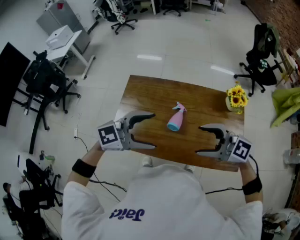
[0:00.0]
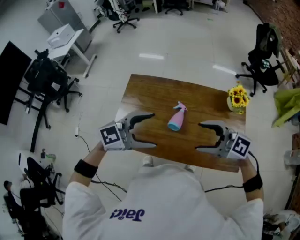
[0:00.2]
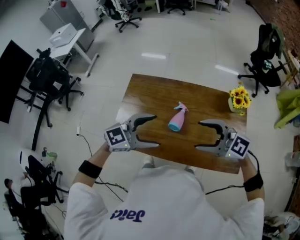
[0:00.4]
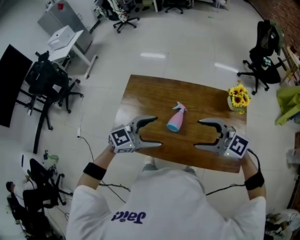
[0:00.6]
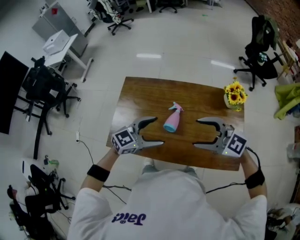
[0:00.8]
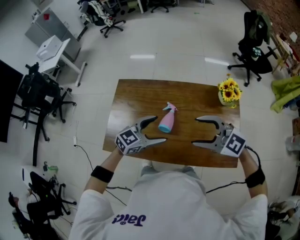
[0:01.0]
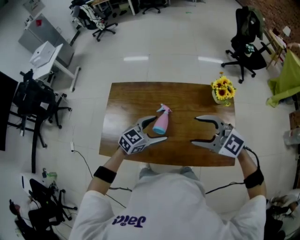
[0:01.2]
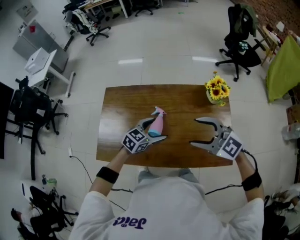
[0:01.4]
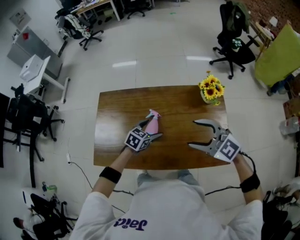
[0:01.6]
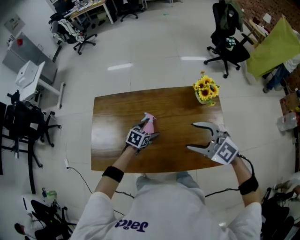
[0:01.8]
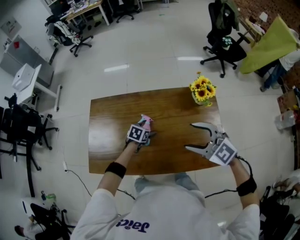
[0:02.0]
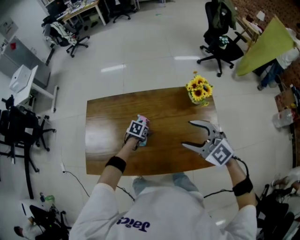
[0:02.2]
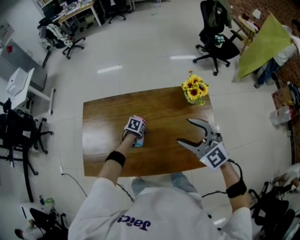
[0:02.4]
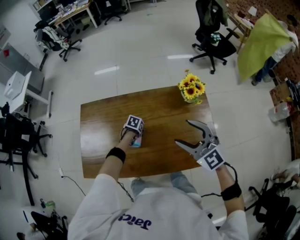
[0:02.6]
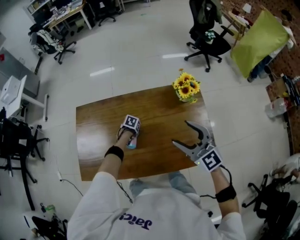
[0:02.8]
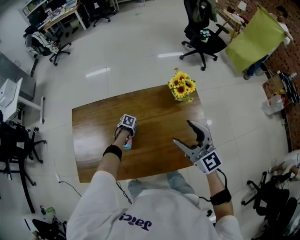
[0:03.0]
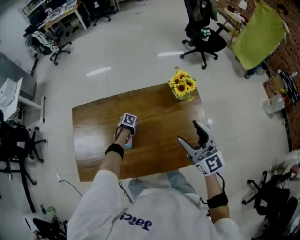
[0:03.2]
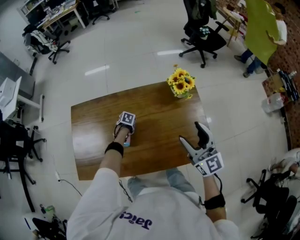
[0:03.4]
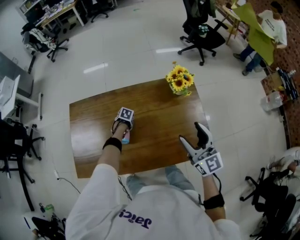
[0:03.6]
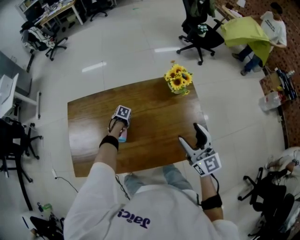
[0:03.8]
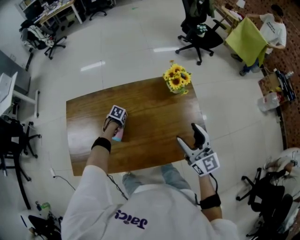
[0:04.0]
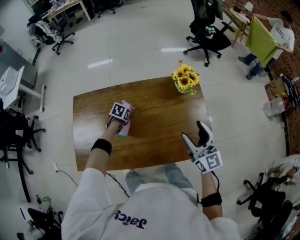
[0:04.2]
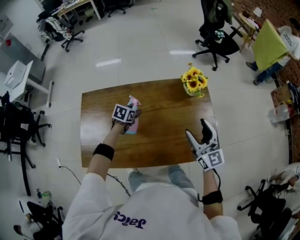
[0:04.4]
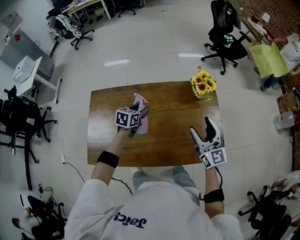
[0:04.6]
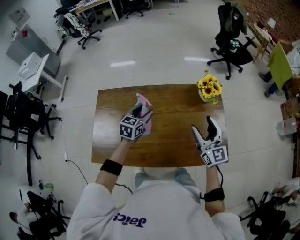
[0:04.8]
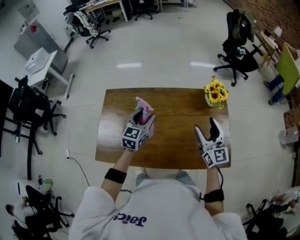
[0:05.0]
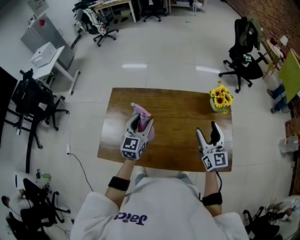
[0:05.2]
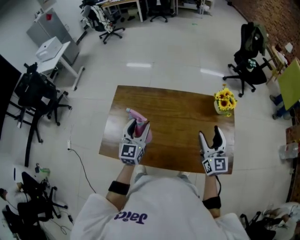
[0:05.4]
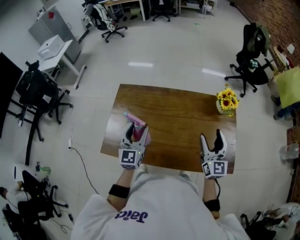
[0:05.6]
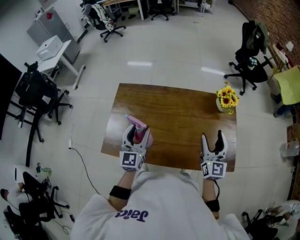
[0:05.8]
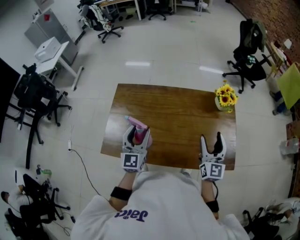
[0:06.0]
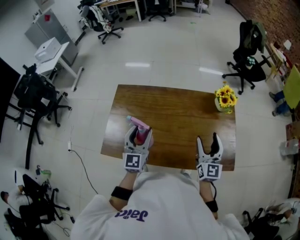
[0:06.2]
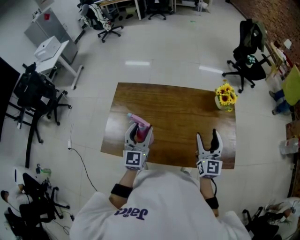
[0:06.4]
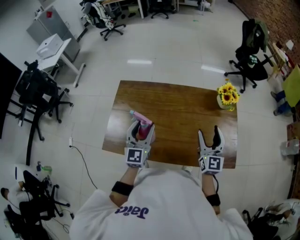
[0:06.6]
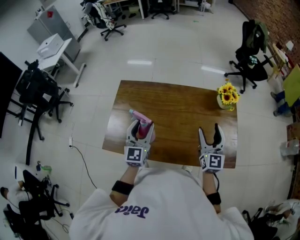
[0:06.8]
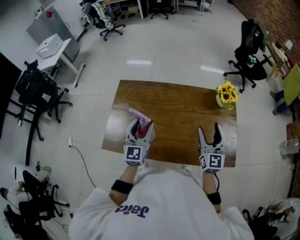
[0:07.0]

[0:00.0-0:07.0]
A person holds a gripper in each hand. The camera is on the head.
0.0 to 1.4 s: The left gripper goes approximately 20 cm downward, and changes its angle by approximately 30 degrees. Meanwhile the right gripper moves about 10 cm, and turns by some 30 degrees.
1.4 to 2.8 s: The left gripper shifts approximately 25 cm downward, and points its fingers approximately 50 degrees further downward. The right gripper shifts by approximately 5 cm, and rotates roughly 40 degrees.
2.8 to 4.2 s: The left gripper shifts about 10 cm upward, and closes. The right gripper moves roughly 10 cm, and swivels about 30 degrees.
4.2 to 5.6 s: The right gripper goes some 10 cm to the left. Meanwhile the left gripper heads upward, backward and to the left, covering roughly 35 cm, and tilts its fingers approximately 70 degrees upward.
5.6 to 7.0 s: The grippers make only small movements.

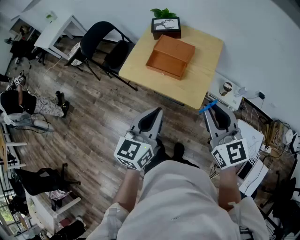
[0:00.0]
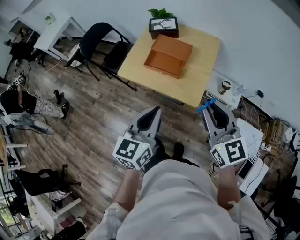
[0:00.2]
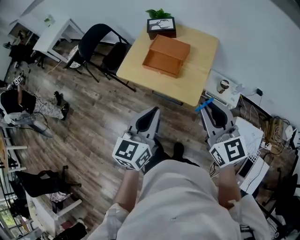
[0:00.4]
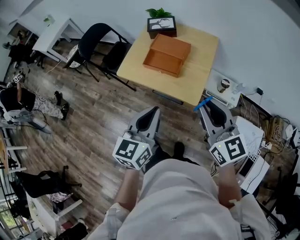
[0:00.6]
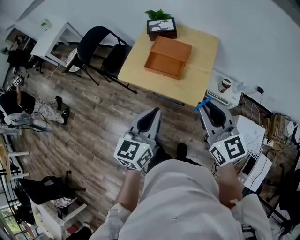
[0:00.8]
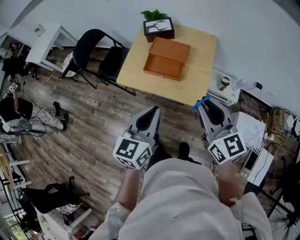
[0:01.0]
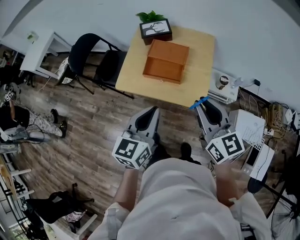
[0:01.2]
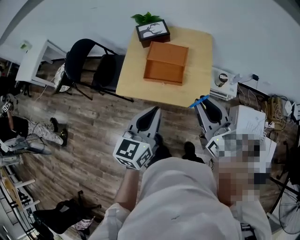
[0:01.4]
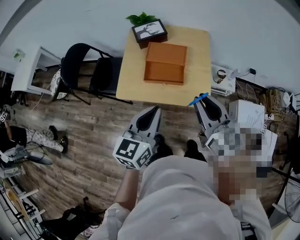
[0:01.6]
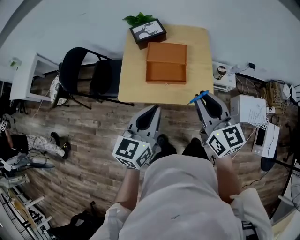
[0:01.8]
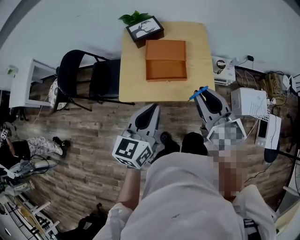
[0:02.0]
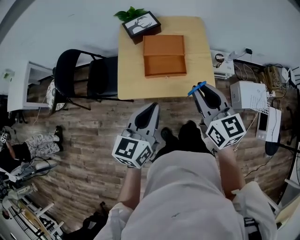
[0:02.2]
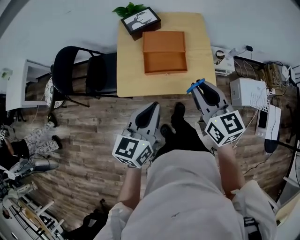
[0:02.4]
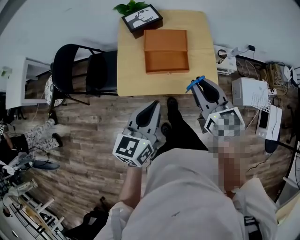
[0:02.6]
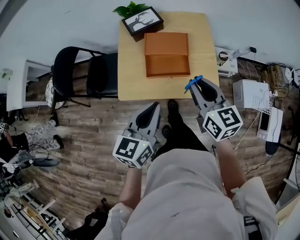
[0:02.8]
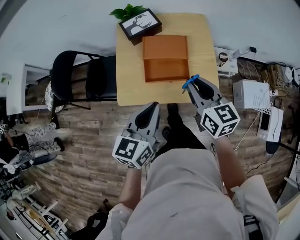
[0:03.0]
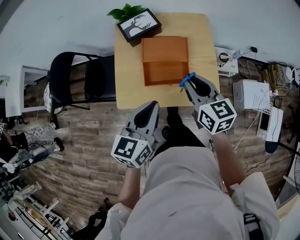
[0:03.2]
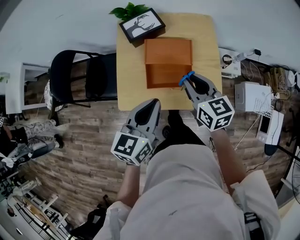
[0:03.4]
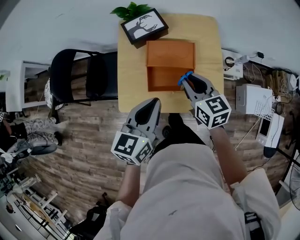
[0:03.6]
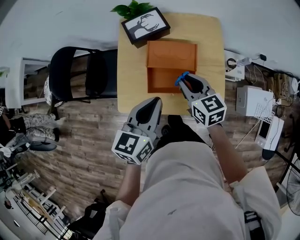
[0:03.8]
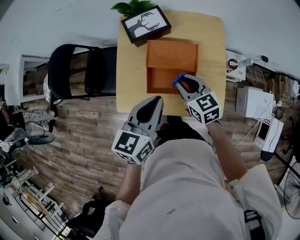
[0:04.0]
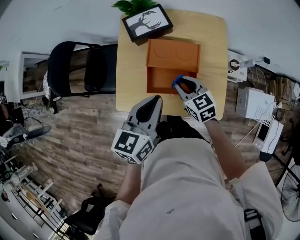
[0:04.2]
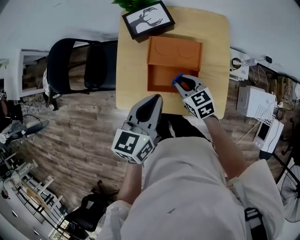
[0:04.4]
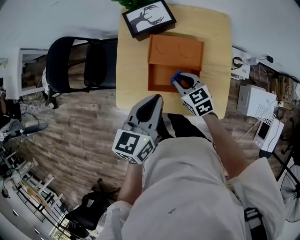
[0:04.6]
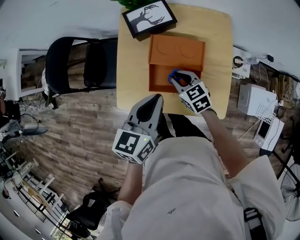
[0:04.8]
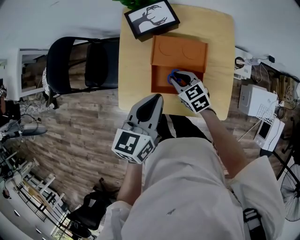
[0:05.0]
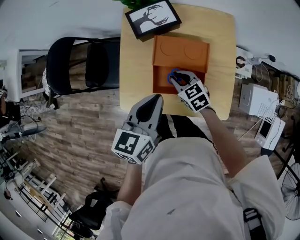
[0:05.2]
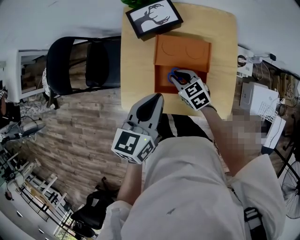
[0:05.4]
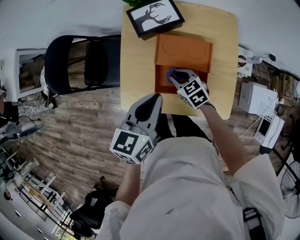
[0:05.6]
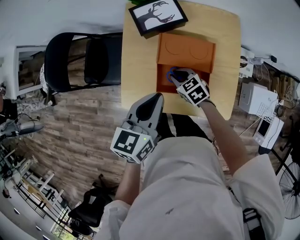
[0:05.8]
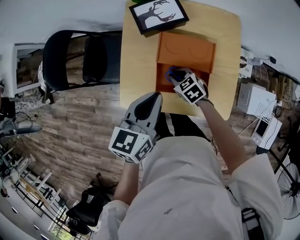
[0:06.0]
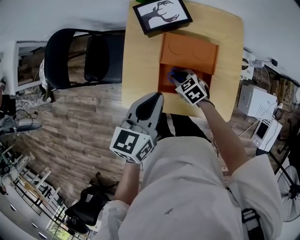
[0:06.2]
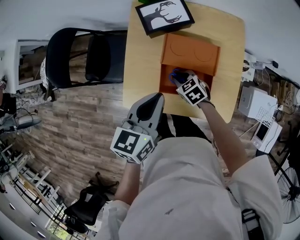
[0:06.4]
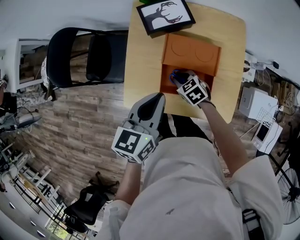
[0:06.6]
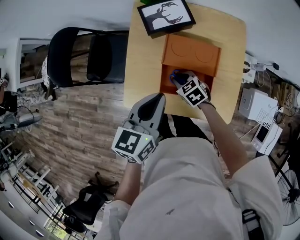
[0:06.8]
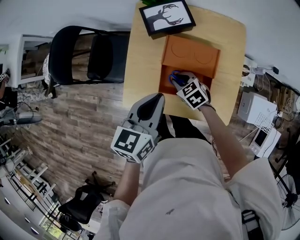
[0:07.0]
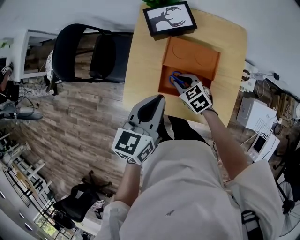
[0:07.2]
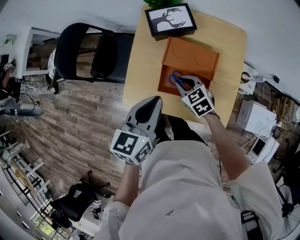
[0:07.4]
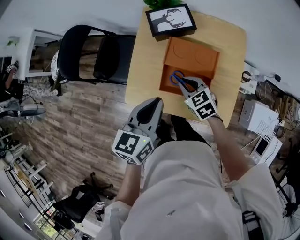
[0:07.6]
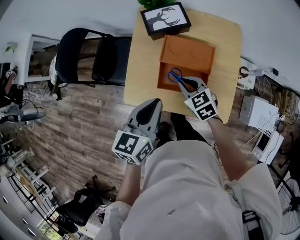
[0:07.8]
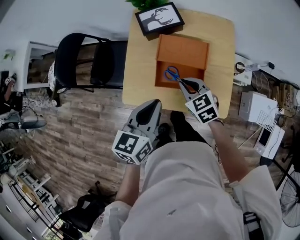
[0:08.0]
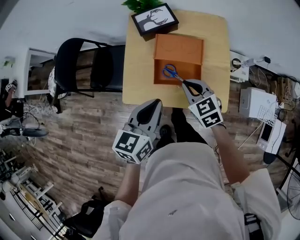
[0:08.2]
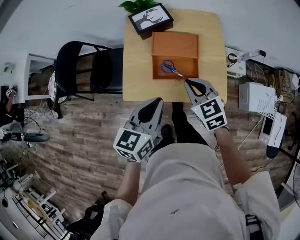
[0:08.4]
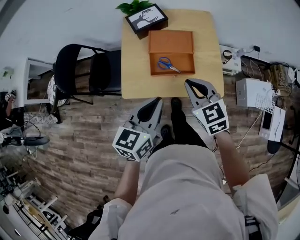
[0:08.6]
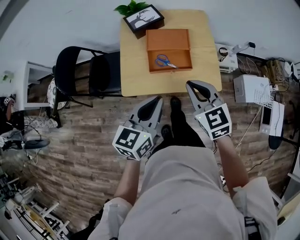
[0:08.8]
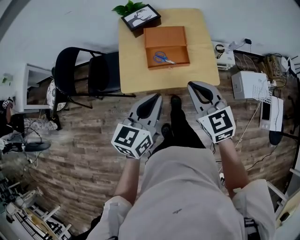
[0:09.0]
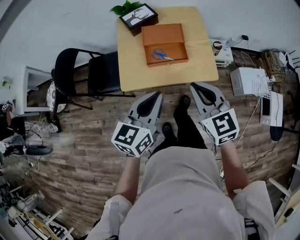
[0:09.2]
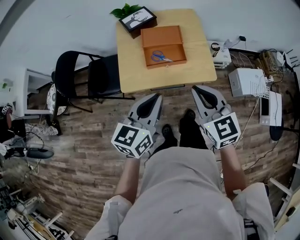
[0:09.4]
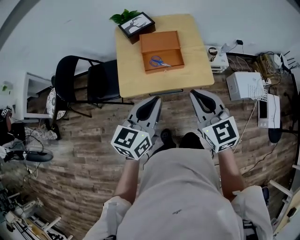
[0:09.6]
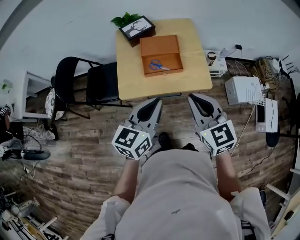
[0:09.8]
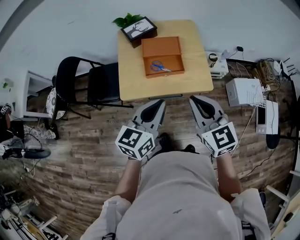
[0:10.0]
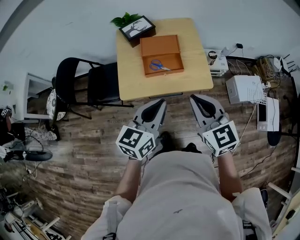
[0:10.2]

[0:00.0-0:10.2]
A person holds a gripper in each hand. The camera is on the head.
0.0 to 1.4 s: The right gripper shifts some 10 cm to the left and forward. Meanwhile the left gripper shifts roughly 10 cm forward and to the left.
1.4 to 3.0 s: The right gripper goes roughly 15 cm forward, to the left and downward. Meanwhile the left gripper travels forward and to the left by about 10 cm.
3.0 to 4.4 s: The right gripper heads downward and forward, covering about 25 cm, and changes its angle by about 30 degrees. Meanwhile the left gripper heads forward, covering roughly 15 cm.
4.4 to 5.8 s: The left gripper ends up some 5 cm from where it was, while the right gripper moves downward and to the left, some 10 cm.
5.8 to 7.2 s: There are only small adjustments of the grippers.
7.2 to 8.8 s: The left gripper heads backward, covering approximately 20 cm. Meanwhile the right gripper is displaced upward and backward by some 35 cm, and turns by roughly 40 degrees.
8.8 to 10.2 s: The left gripper goes about 5 cm backward. The right gripper goes some 10 cm backward and upward.

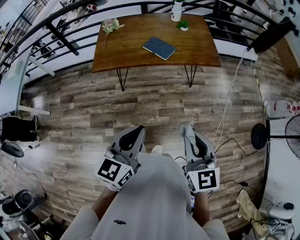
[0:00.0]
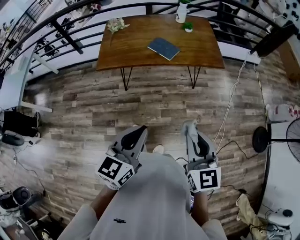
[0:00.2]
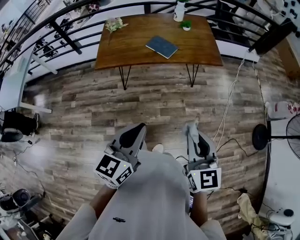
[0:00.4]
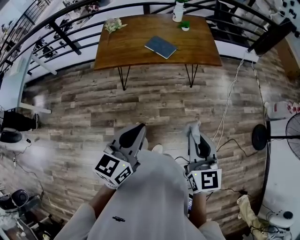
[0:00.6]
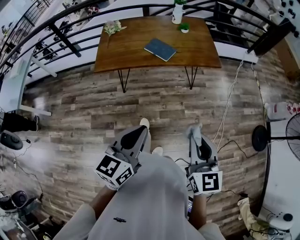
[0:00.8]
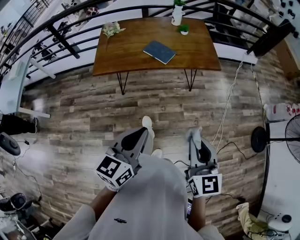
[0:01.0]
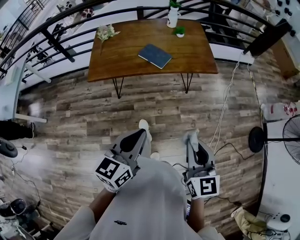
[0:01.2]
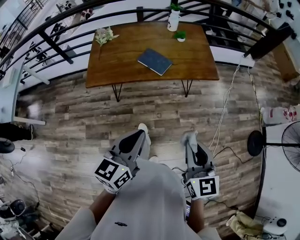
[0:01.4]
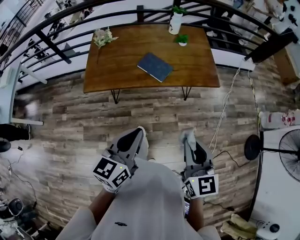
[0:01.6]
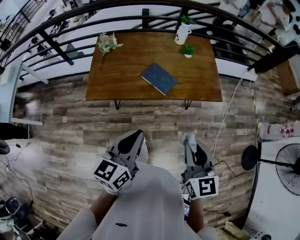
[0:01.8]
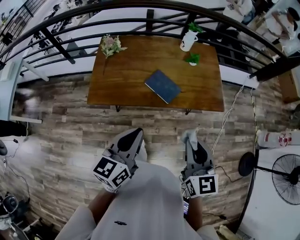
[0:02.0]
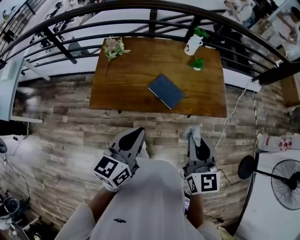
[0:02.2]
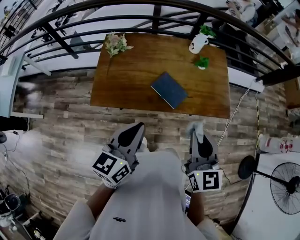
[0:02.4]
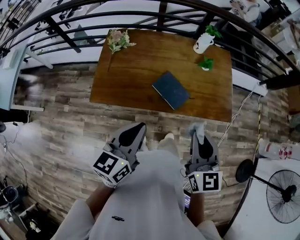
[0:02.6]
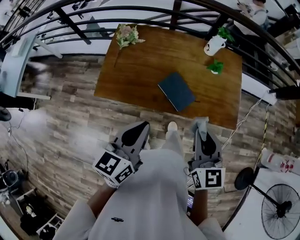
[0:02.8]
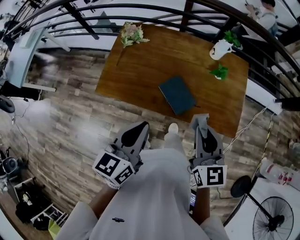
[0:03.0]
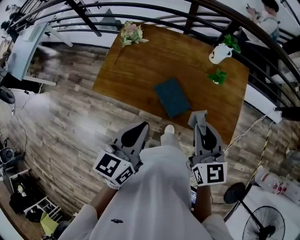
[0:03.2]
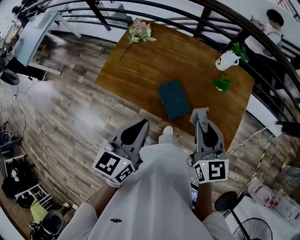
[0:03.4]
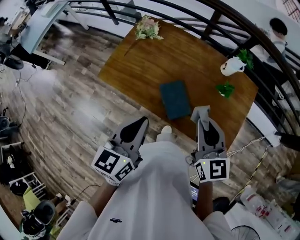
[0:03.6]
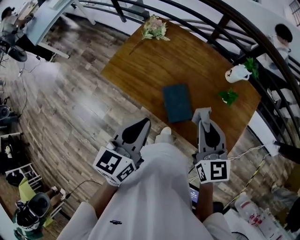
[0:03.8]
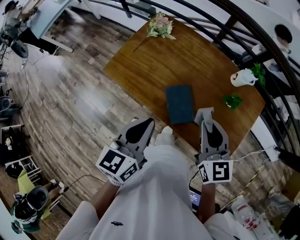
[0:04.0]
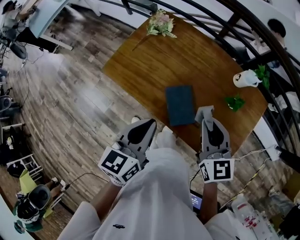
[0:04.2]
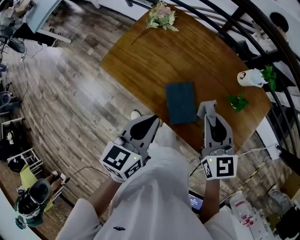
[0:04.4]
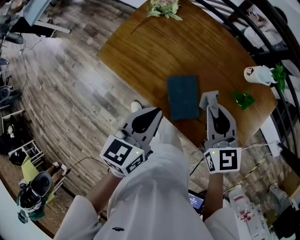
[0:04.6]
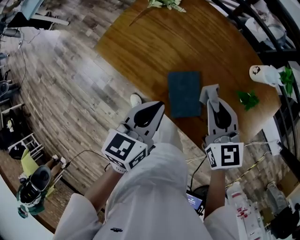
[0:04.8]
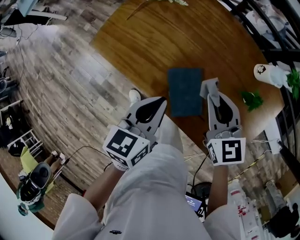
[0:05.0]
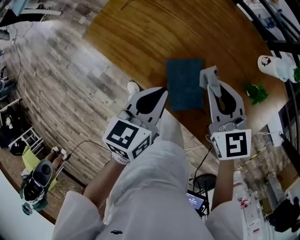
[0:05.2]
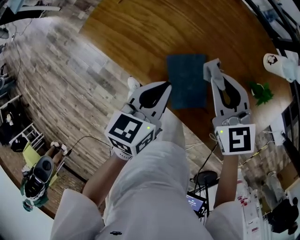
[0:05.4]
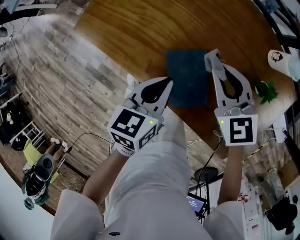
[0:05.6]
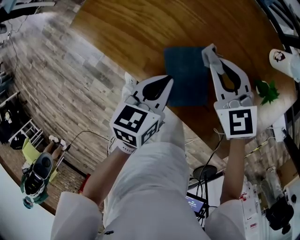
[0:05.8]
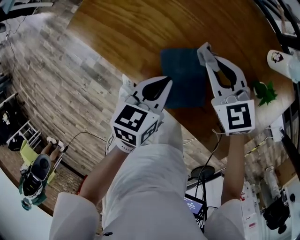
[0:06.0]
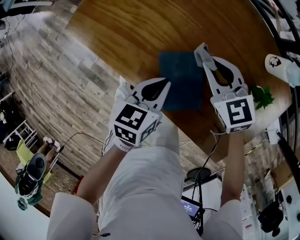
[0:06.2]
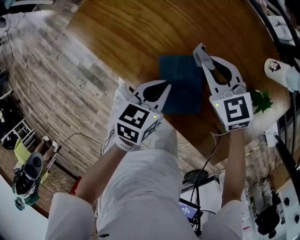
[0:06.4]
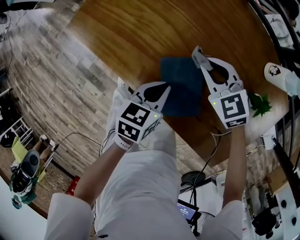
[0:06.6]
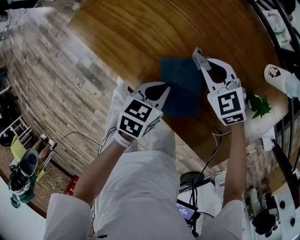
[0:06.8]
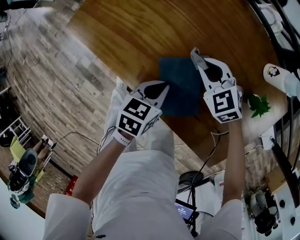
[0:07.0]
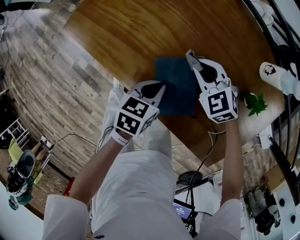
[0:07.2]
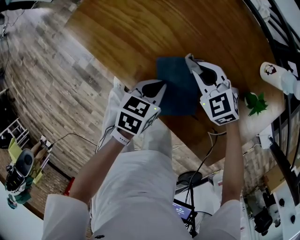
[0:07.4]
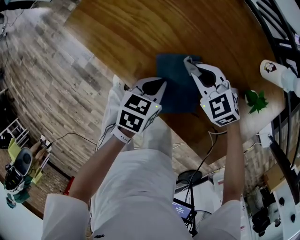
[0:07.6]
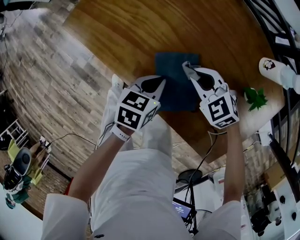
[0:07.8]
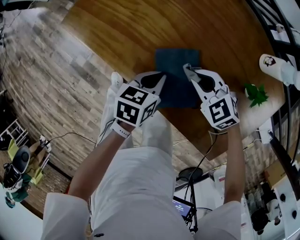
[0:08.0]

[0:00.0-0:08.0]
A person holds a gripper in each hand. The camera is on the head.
0.0 to 1.6 s: Both grippers move forward, about 15 cm.
1.6 to 3.2 s: Both grippers travel together forward, some 30 cm. The left gripper swivels about 20 degrees; the right gripper swivels some 20 degrees.
3.2 to 4.8 s: The right gripper is displaced forward and downward by roughly 20 cm, and rotates approximately 30 degrees. The left gripper travels downward and forward by approximately 15 cm, and turns by about 20 degrees.
4.8 to 6.4 s: The right gripper goes some 20 cm downward and forward, and turns by approximately 30 degrees; the left gripper heads downward, covering some 20 cm.
6.4 to 8.0 s: The right gripper is displaced backward and downward by approximately 10 cm, and swivels roughly 20 degrees.
